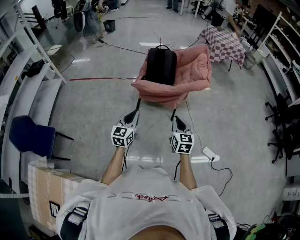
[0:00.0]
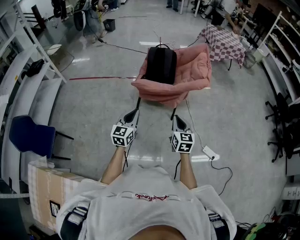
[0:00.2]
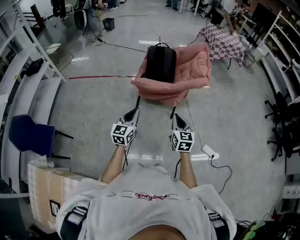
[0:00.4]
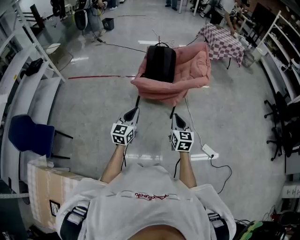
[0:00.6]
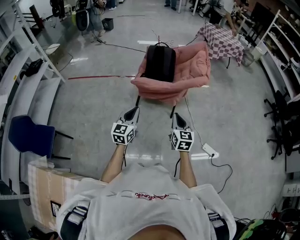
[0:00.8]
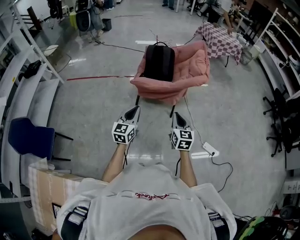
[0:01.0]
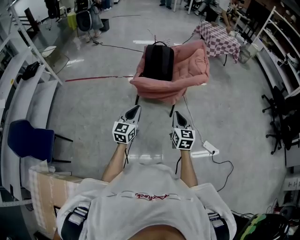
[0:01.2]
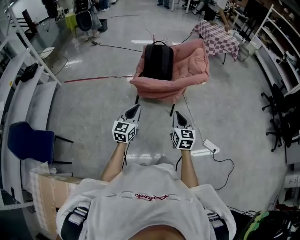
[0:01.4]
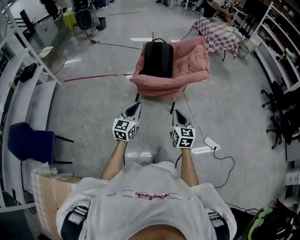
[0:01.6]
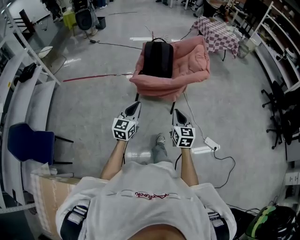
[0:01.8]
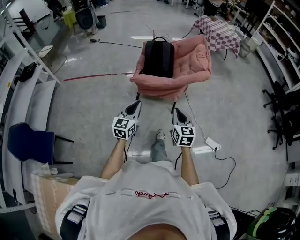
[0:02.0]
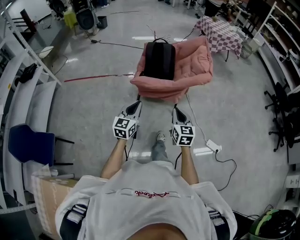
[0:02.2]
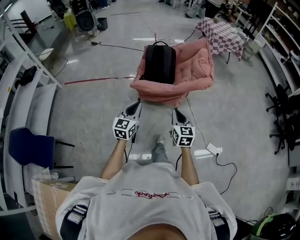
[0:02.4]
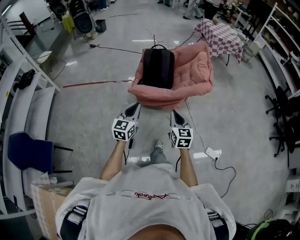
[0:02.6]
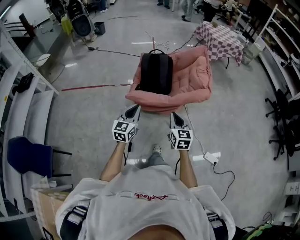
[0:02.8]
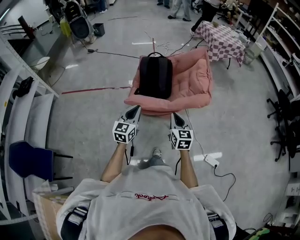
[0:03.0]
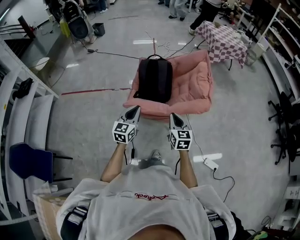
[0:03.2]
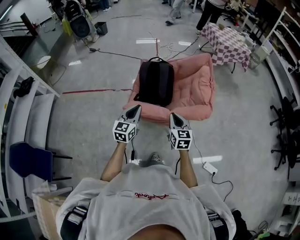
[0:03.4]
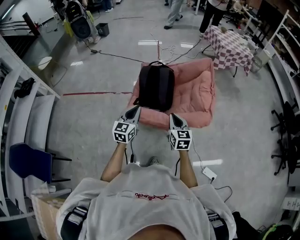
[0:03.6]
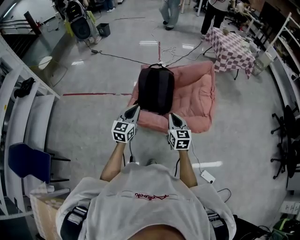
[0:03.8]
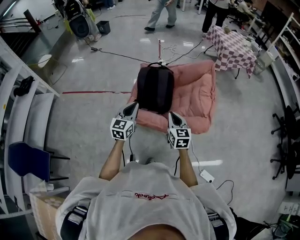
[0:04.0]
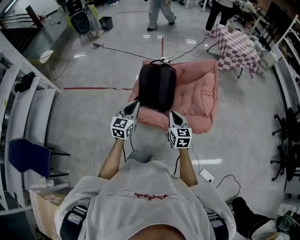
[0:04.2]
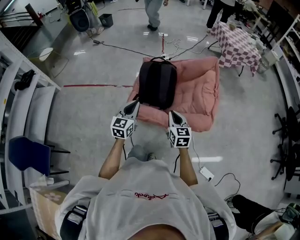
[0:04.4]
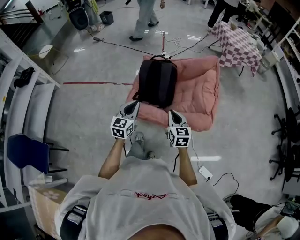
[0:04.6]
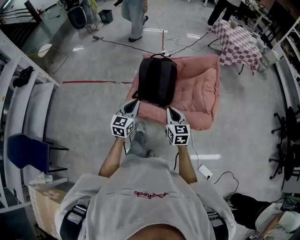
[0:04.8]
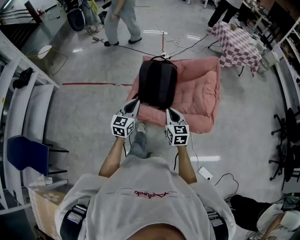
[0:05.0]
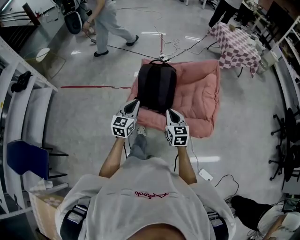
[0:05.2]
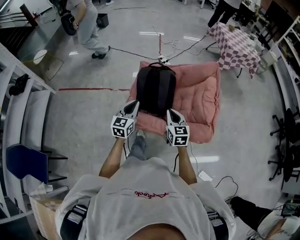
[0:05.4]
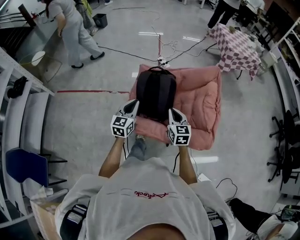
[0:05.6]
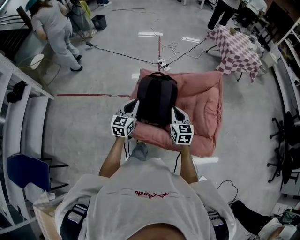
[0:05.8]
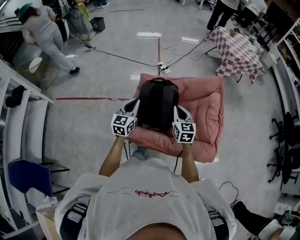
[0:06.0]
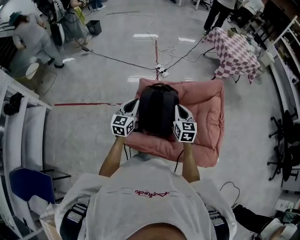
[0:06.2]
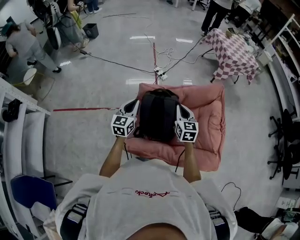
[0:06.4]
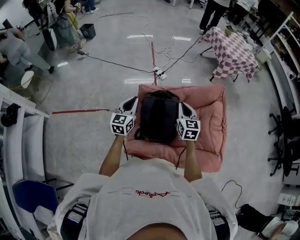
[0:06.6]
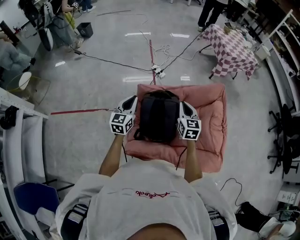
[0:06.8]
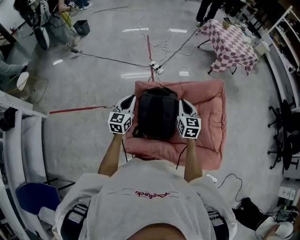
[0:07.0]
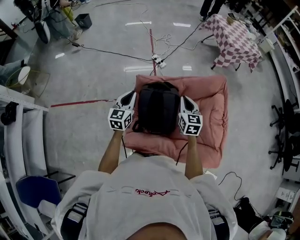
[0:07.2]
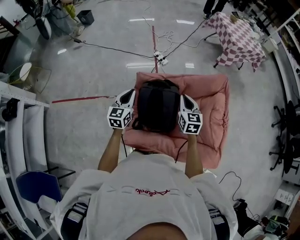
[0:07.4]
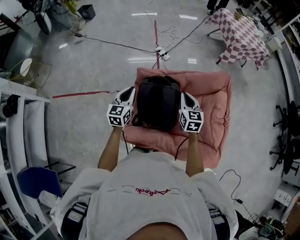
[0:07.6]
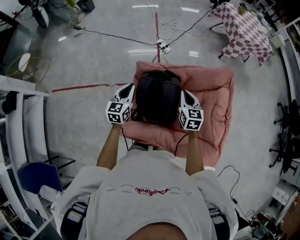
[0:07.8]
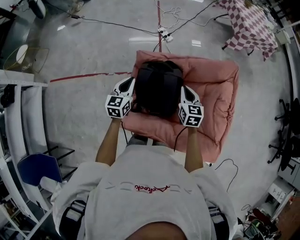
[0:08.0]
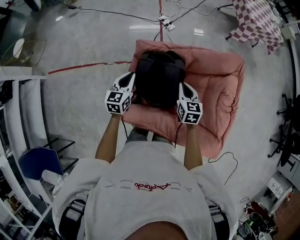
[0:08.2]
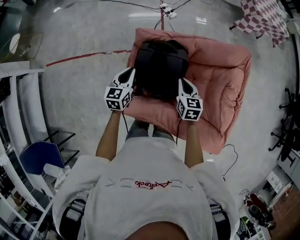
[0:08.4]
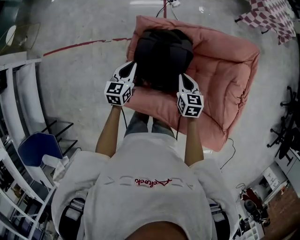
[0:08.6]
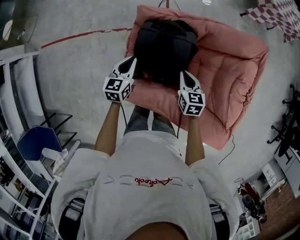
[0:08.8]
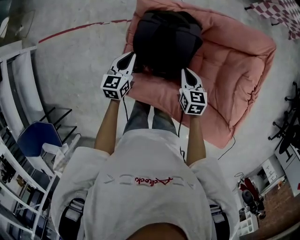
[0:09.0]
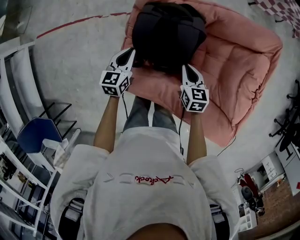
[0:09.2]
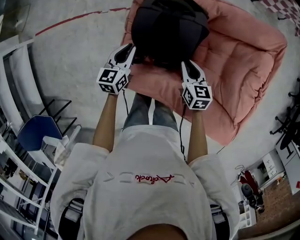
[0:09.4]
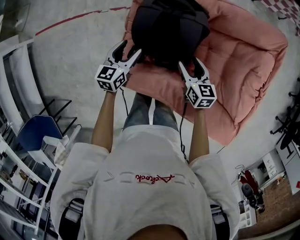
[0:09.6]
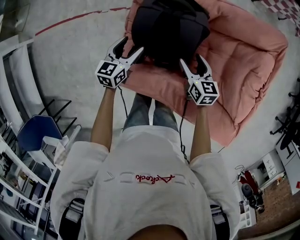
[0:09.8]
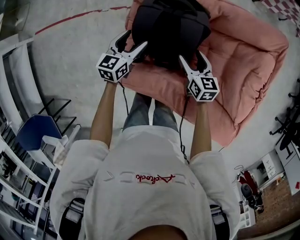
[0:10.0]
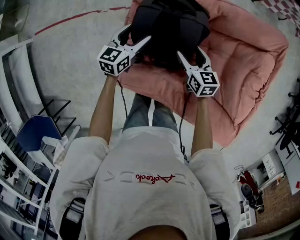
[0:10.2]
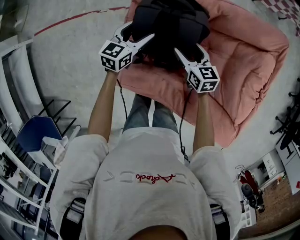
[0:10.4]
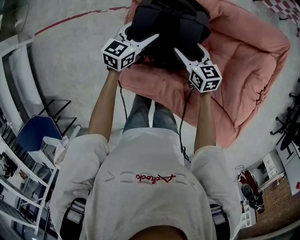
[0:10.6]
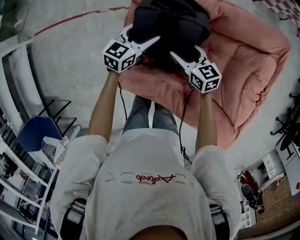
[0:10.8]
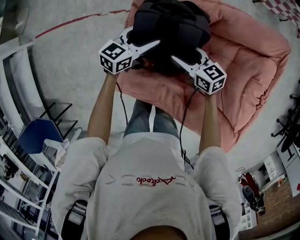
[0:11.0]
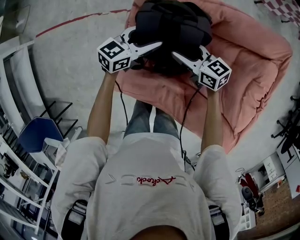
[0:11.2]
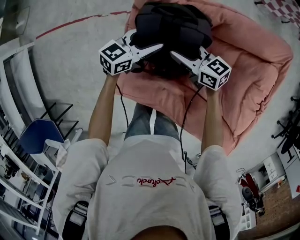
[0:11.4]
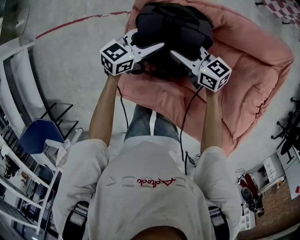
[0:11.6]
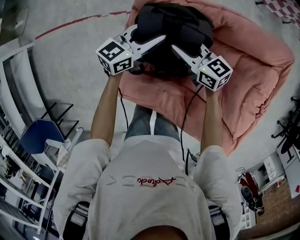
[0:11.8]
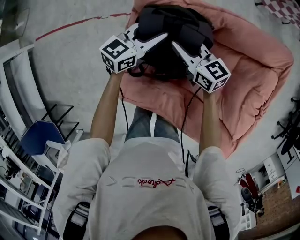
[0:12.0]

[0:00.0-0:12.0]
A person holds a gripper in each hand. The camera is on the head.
0:00.0 to 0:01.6: The grippers make only small movements.
0:01.6 to 0:03.0: The grippers both shift forward by about 25 cm.
0:03.0 to 0:04.4: The two grippers go some 20 cm forward.
0:04.4 to 0:06.0: Both grippers travel together forward, some 25 cm.
0:06.0 to 0:07.6: Both grippers travel together forward, approximately 15 cm.
0:07.6 to 0:09.0: The grippers both shift downward by about 20 cm. The right gripper rotates approximately 20 degrees.
0:09.0 to 0:10.4: Both grippers move forward, some 5 cm. The left gripper opens its fingers. Meanwhile the right gripper opens.
0:10.4 to 0:12.0: The left gripper travels forward and to the right by about 10 cm, and closes up; the right gripper is displaced forward and to the left by roughly 10 cm, swivels about 20 degrees, and closes.

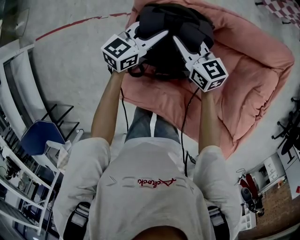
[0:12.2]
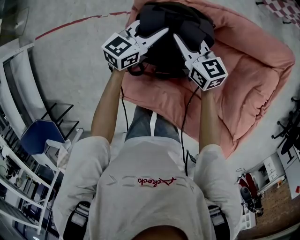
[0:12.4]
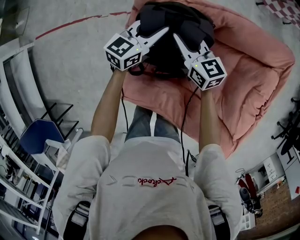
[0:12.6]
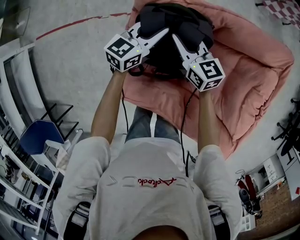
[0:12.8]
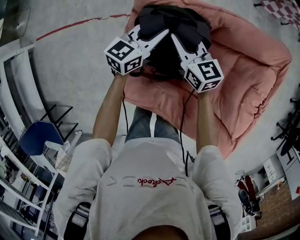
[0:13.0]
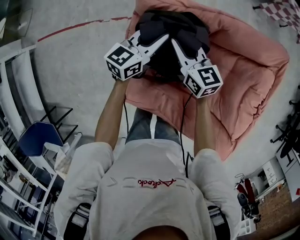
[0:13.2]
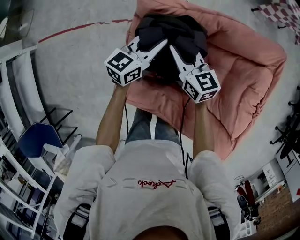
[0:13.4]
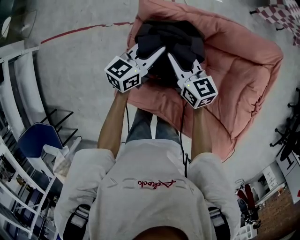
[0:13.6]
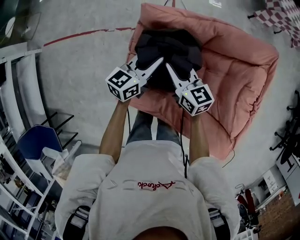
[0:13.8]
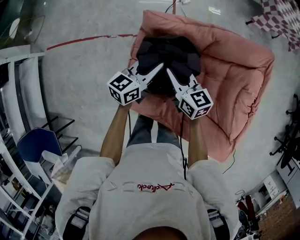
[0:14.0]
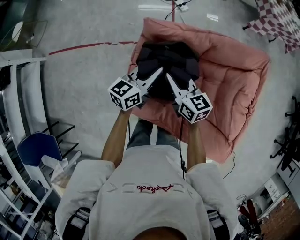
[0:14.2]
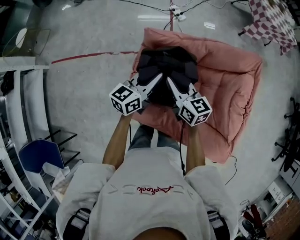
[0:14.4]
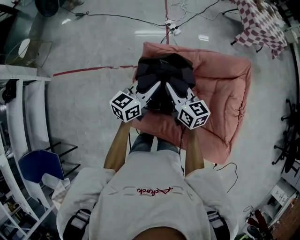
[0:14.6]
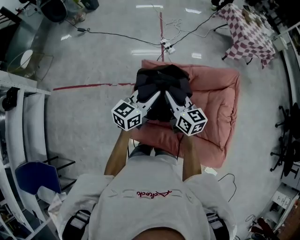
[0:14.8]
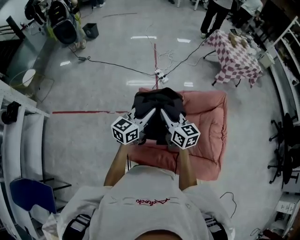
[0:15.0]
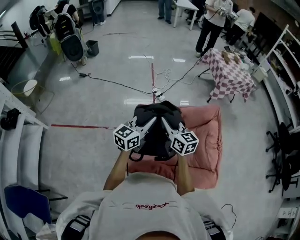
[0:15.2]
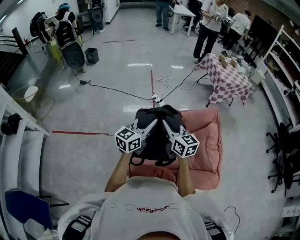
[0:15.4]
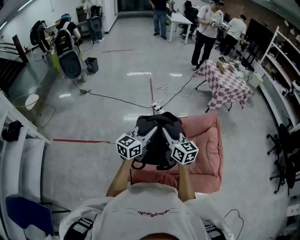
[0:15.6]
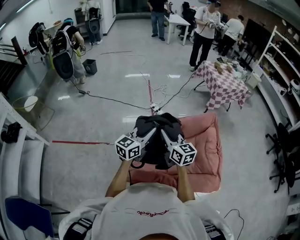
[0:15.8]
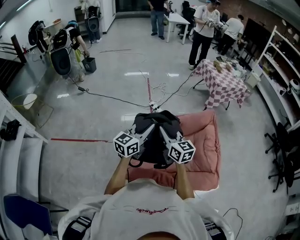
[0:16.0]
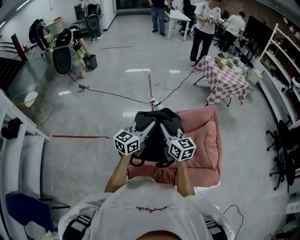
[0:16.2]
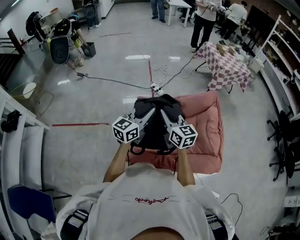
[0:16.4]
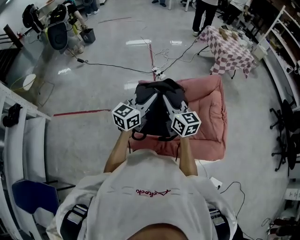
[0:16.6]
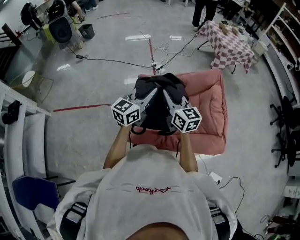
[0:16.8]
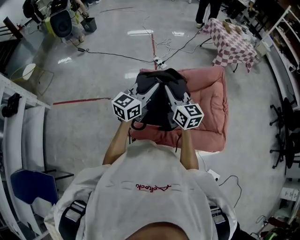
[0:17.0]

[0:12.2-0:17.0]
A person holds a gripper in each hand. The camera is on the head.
0:12.2 to 0:13.8: The grippers both shift backward and upward by approximately 10 cm.
0:13.8 to 0:15.4: The grippers both shift upward by approximately 30 cm. The right gripper changes its angle by about 20 degrees. The left gripper rotates approximately 20 degrees.
0:15.4 to 0:17.0: The grippers both shift backward by some 5 cm.

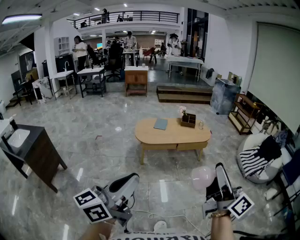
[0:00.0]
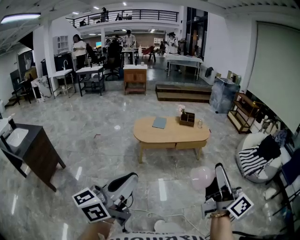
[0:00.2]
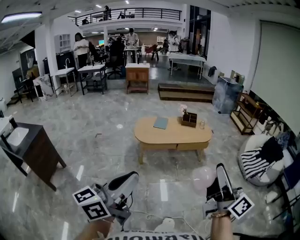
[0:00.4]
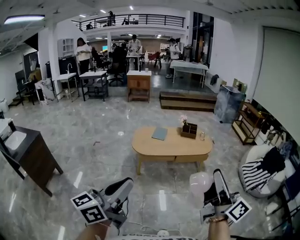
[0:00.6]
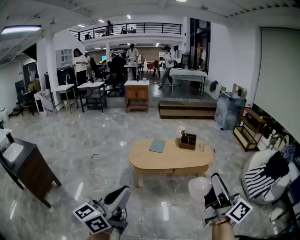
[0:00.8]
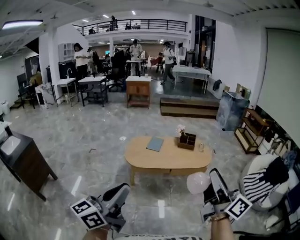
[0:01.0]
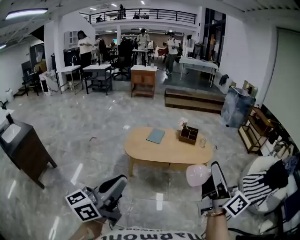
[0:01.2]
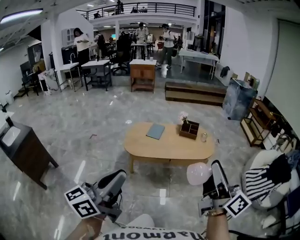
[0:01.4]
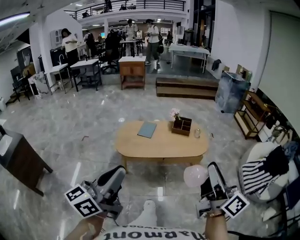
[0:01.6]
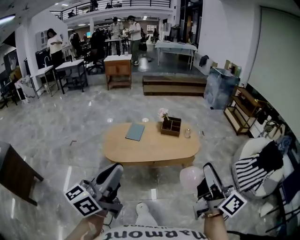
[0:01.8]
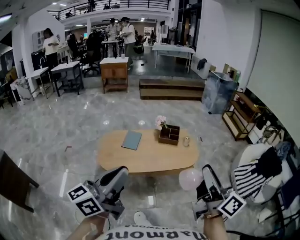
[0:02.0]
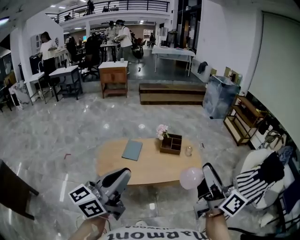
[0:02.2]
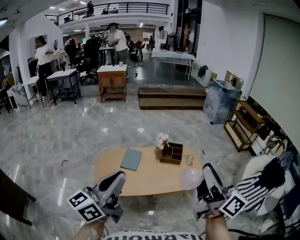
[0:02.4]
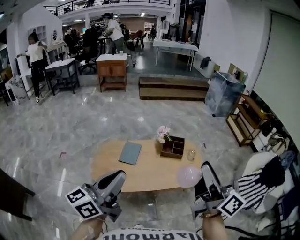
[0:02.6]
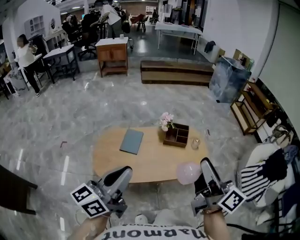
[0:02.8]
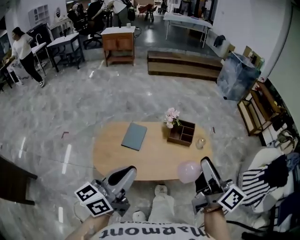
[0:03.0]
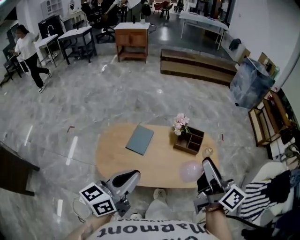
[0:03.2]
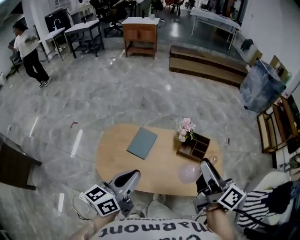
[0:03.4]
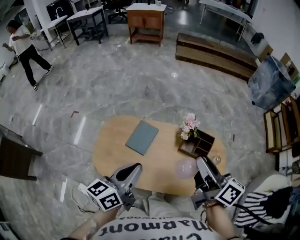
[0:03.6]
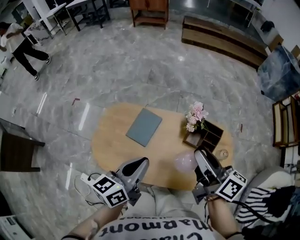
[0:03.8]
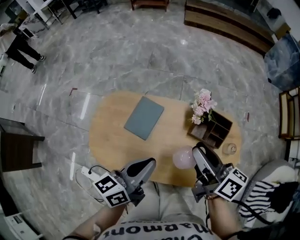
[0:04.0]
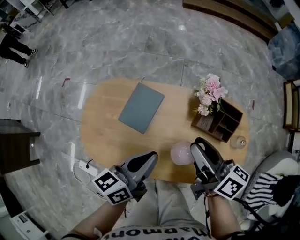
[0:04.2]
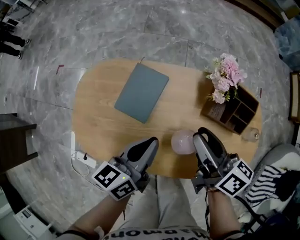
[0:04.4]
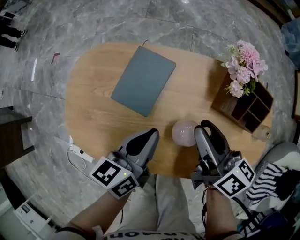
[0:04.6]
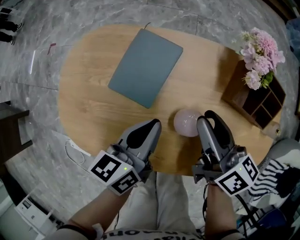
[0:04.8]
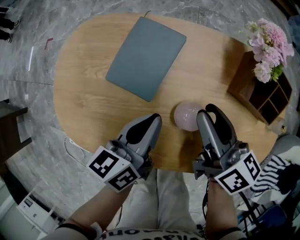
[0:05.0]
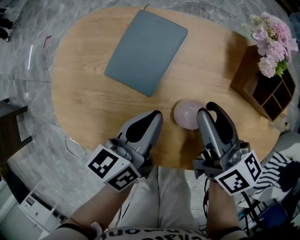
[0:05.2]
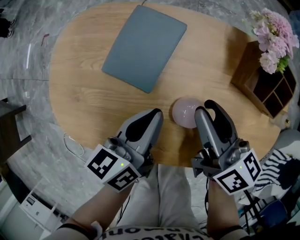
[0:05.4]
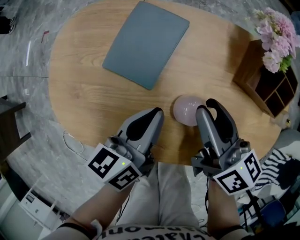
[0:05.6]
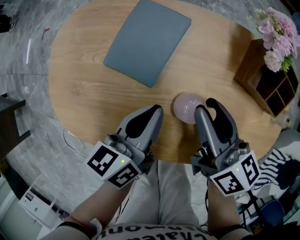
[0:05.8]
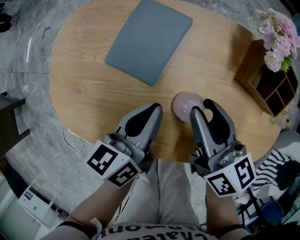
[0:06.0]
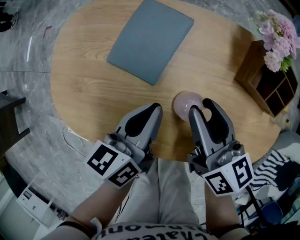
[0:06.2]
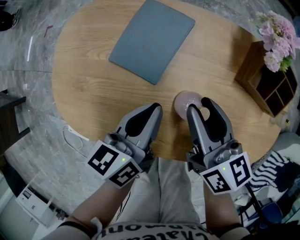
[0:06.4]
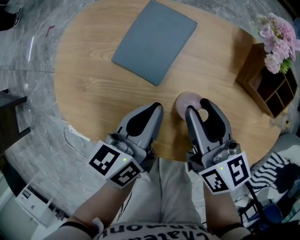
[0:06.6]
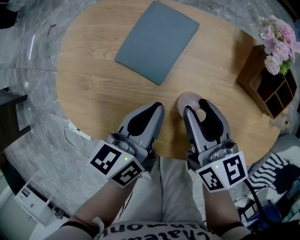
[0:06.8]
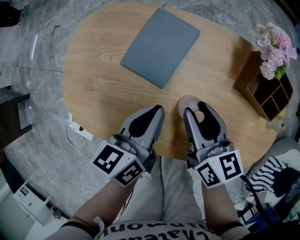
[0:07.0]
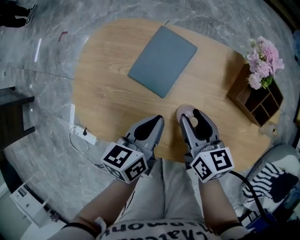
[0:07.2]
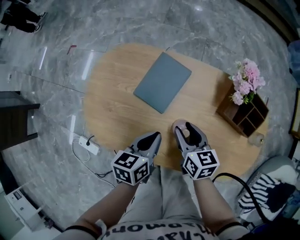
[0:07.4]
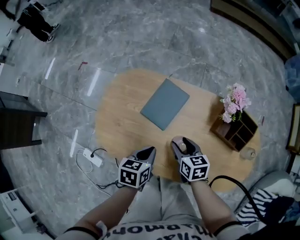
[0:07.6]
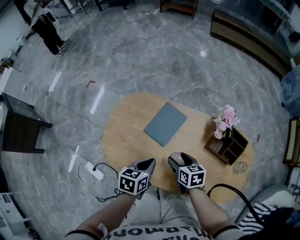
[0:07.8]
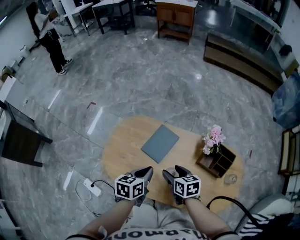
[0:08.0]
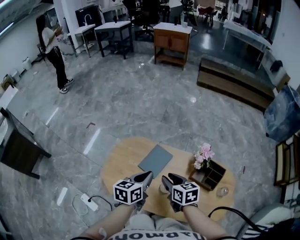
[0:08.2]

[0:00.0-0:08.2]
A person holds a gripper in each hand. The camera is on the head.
0:00.0 to 0:01.6: Both grippers travel together forward and to the right, roughly 40 cm.
0:01.6 to 0:03.2: The two grippers travel together, forward, about 50 cm.
0:03.2 to 0:05.0: The grippers both shift downward and forward by roughly 50 cm. The right gripper turns by roughly 30 degrees, while the left gripper turns by about 30 degrees.
0:05.0 to 0:06.6: The right gripper changes place by about 5 cm.
0:06.6 to 0:08.2: Both grippers travel together upward, approximately 20 cm. The right gripper rotates approximately 20 degrees, and opens and closes again.
